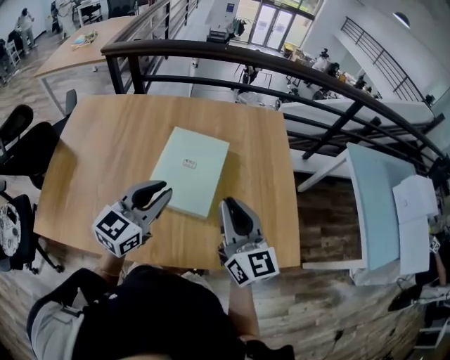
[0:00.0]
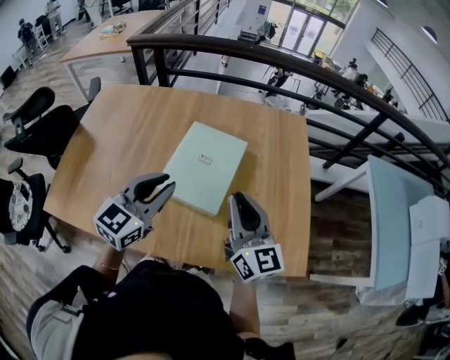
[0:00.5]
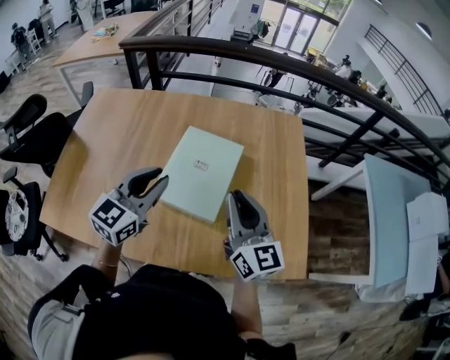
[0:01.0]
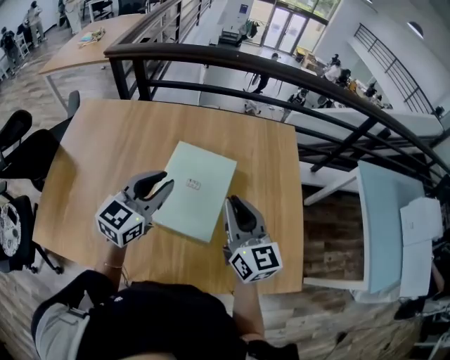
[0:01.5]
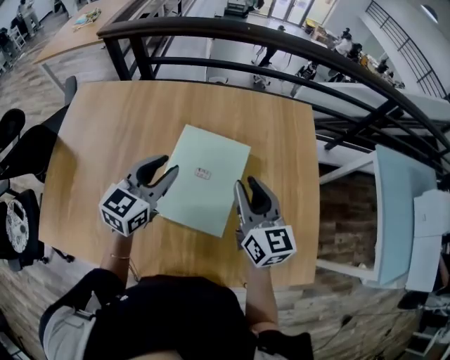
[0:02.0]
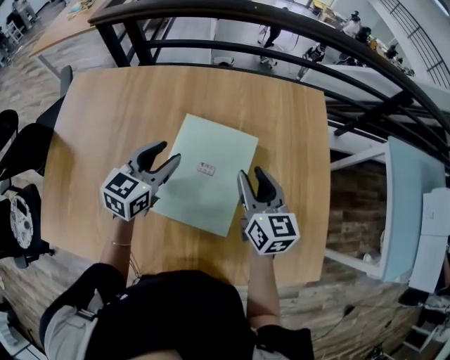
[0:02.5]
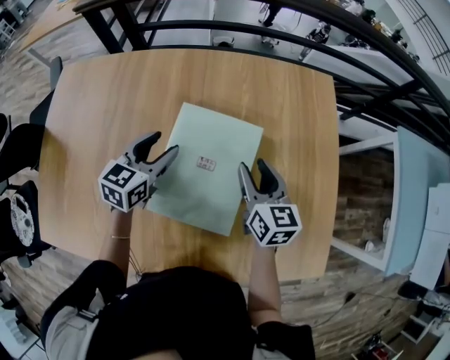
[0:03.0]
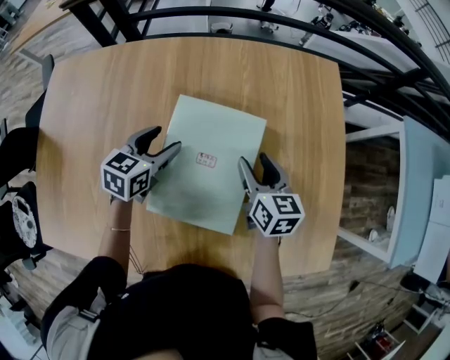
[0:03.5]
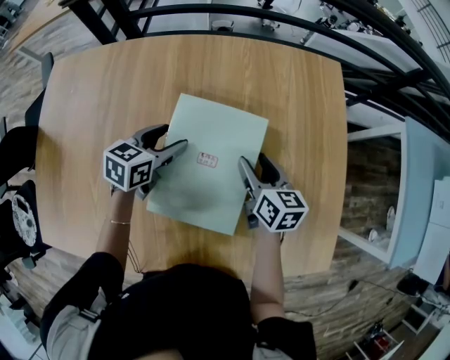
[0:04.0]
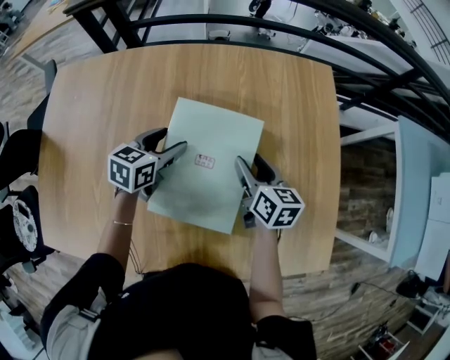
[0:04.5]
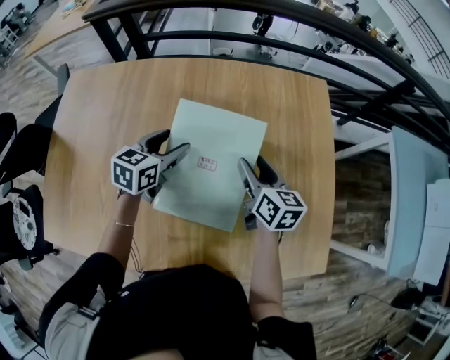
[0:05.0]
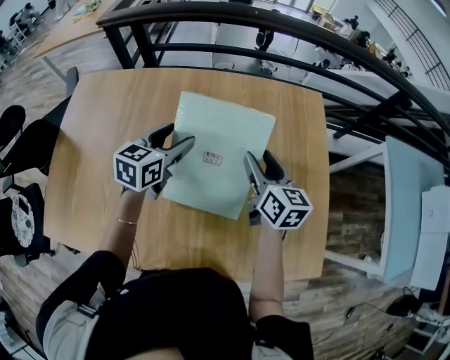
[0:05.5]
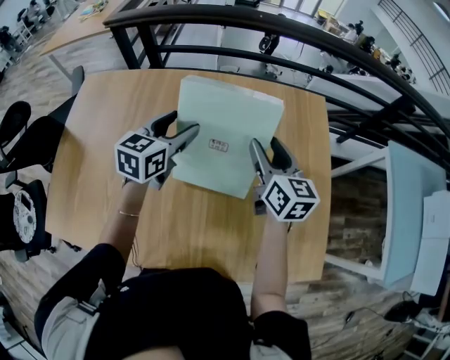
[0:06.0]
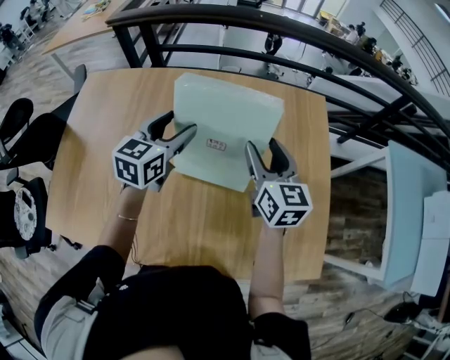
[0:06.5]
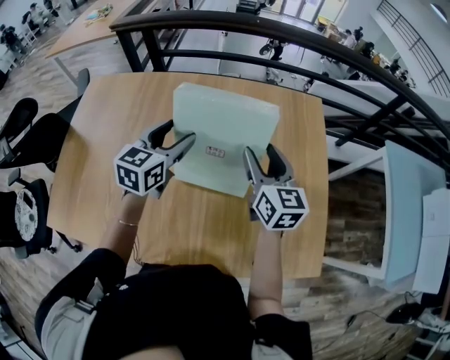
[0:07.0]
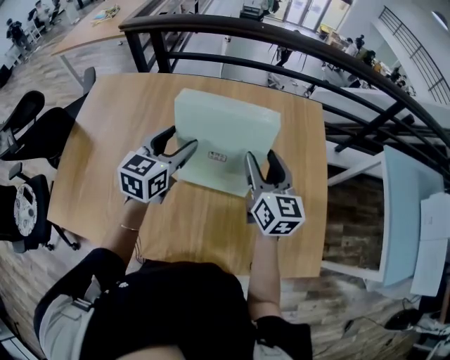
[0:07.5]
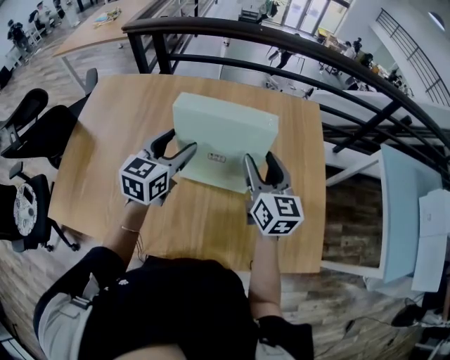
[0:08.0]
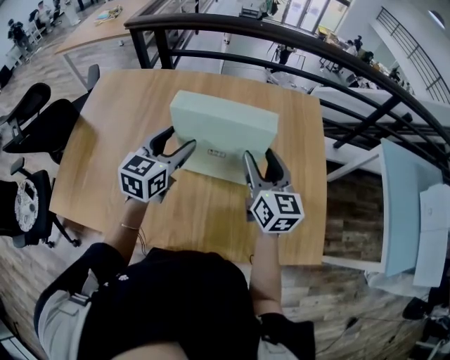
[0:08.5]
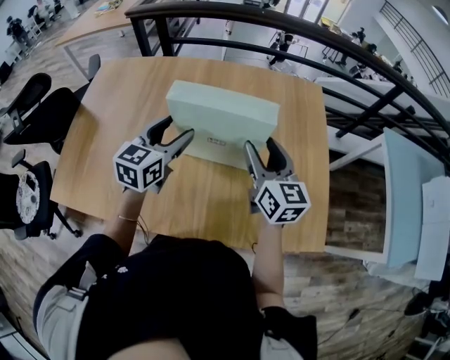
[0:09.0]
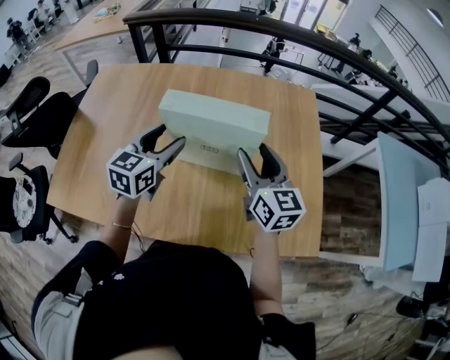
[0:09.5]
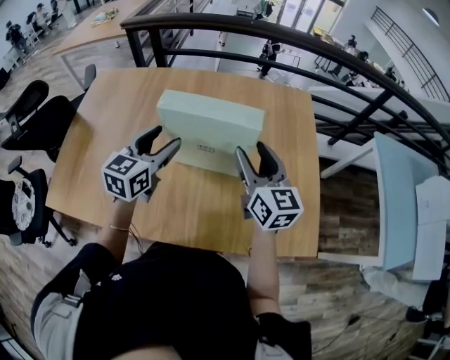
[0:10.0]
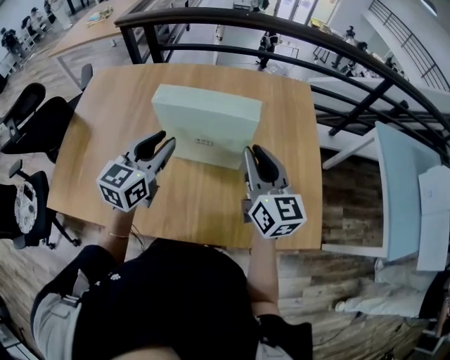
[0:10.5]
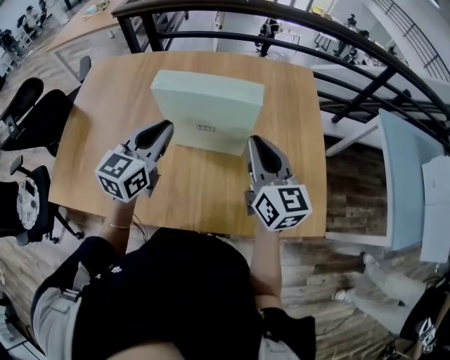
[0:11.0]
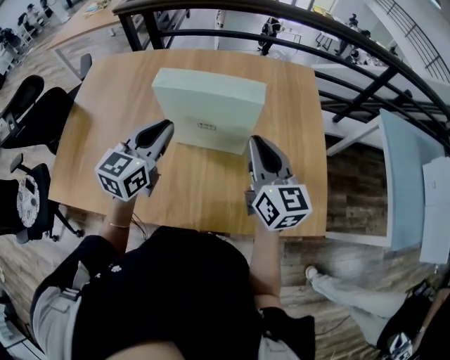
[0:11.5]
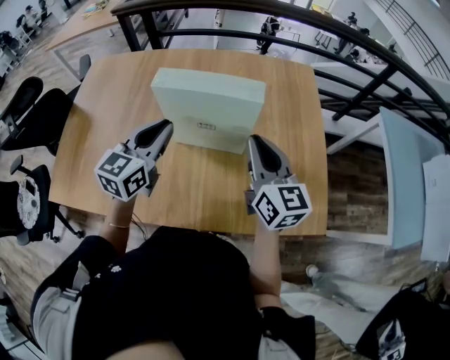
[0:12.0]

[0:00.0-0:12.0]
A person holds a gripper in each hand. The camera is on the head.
0:00.0 to 0:02.0: The left gripper is displaced forward by about 15 cm; the right gripper moves forward and downward, approximately 15 cm.
0:02.0 to 0:04.0: Both grippers move downward and forward, roughly 20 cm. The left gripper rotates approximately 30 degrees, and opens, while the right gripper turns by roughly 30 degrees, and opens its fingers.
0:04.0 to 0:06.0: The grippers both shift upward by some 15 cm. The left gripper changes its angle by approximately 20 degrees.
0:06.0 to 0:08.0: The grippers both shift backward by some 10 cm.
0:08.0 to 0:10.0: Both grippers move backward, some 5 cm.
0:10.0 to 0:12.0: The right gripper closes up, while the left gripper closes up.

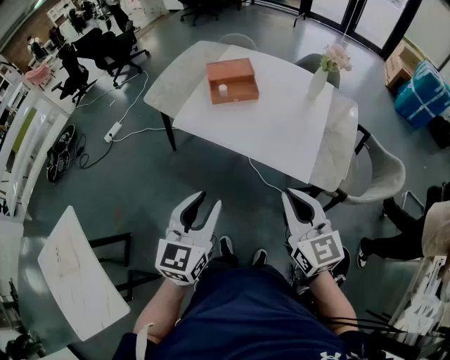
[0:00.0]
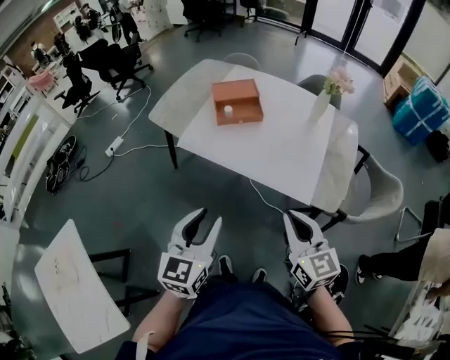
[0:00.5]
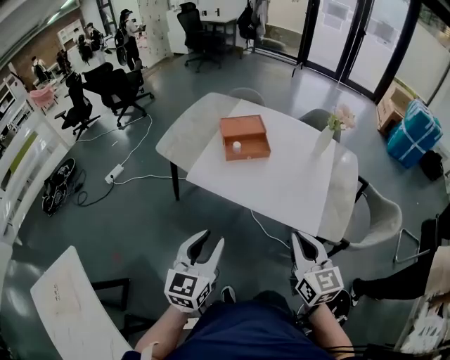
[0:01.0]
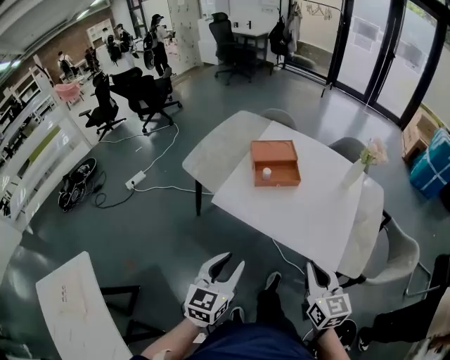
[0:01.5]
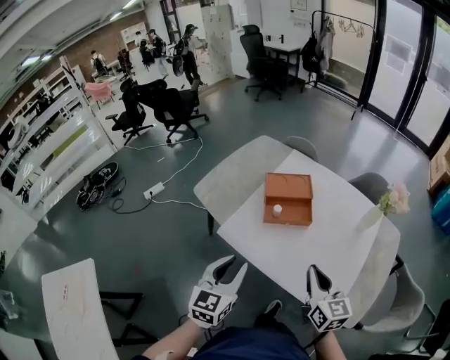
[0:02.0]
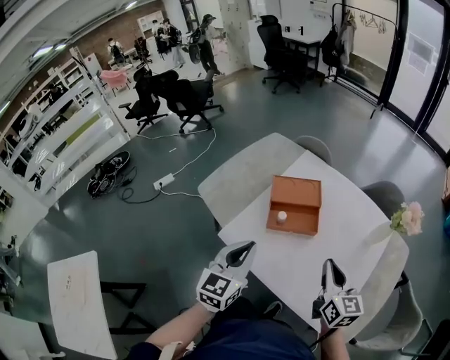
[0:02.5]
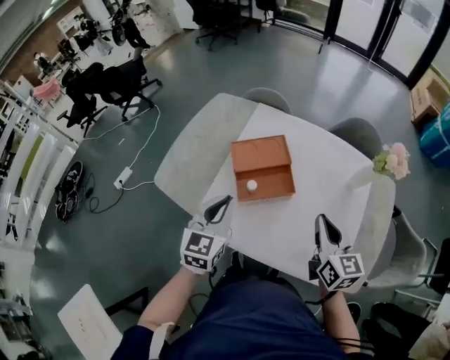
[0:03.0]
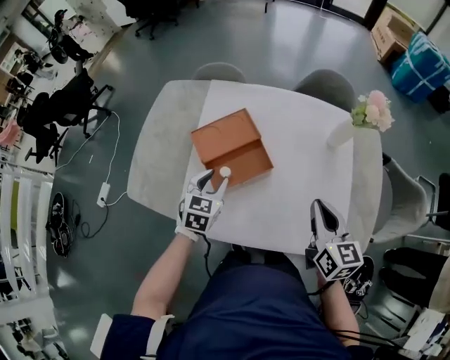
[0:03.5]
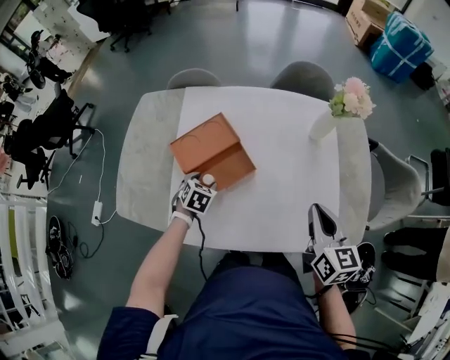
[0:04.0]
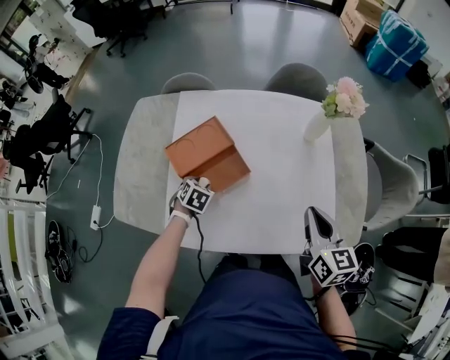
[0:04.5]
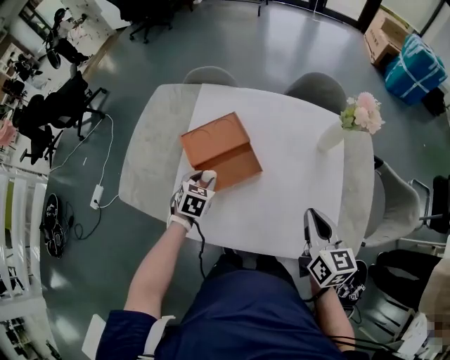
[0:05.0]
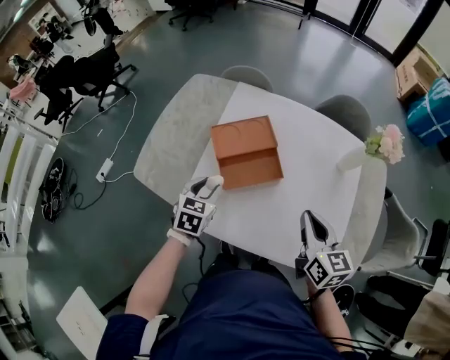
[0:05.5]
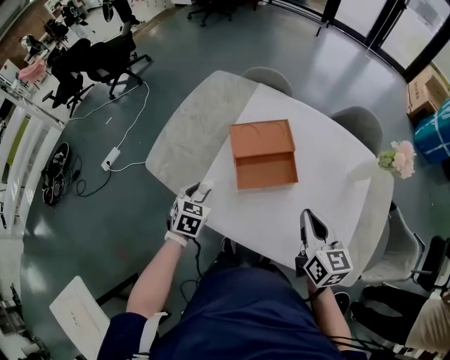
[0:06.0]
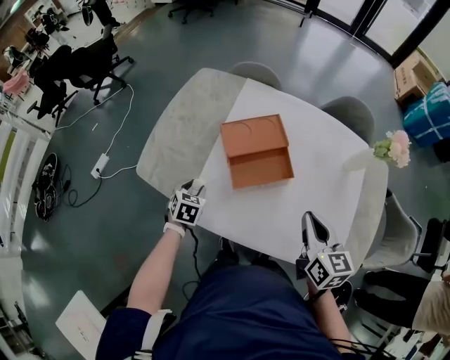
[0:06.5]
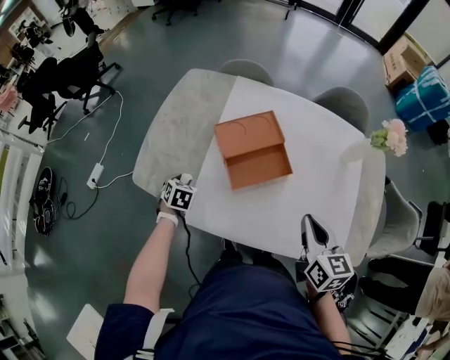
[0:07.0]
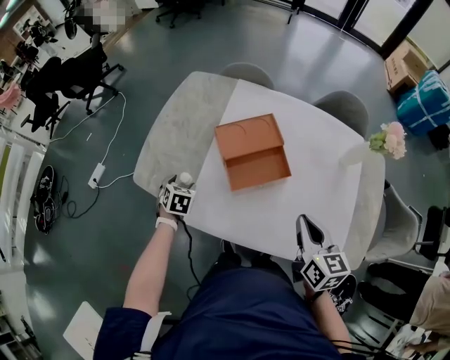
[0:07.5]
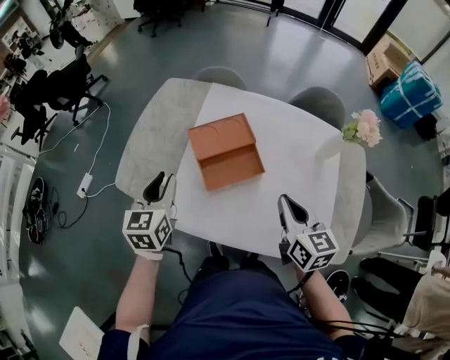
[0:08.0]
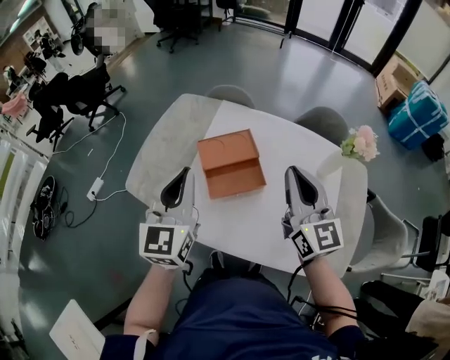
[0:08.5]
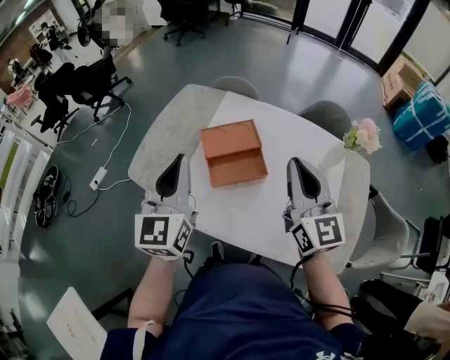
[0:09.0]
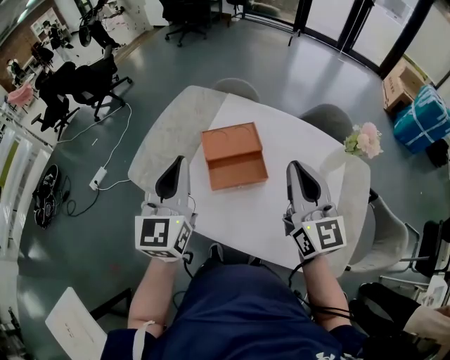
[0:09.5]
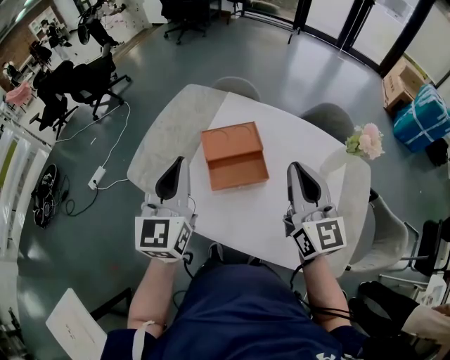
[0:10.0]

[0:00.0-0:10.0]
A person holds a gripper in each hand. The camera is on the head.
0:00.0 to 0:02.0: The two grippers go some 25 cm forward.
0:02.0 to 0:04.0: The right gripper changes place by roughly 15 cm, and turns by approximately 40 degrees, while the left gripper changes place by approximately 40 cm, tilts its fingers roughly 50 degrees downward, and opens.
0:04.0 to 0:06.0: The left gripper shifts approximately 20 cm to the left, backward and upward, and rotates some 30 degrees, while the right gripper shifts about 15 cm to the left, and turns by about 20 degrees.
0:06.0 to 0:08.0: The left gripper is displaced upward by roughly 15 cm, changes its angle by about 30 degrees, and opens and closes again.
0:08.0 to 0:10.0: The grippers both shift upward by approximately 15 cm. The left gripper changes its angle by roughly 20 degrees, and closes up; the right gripper turns by roughly 30 degrees.

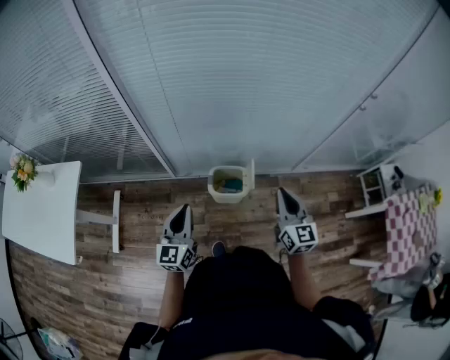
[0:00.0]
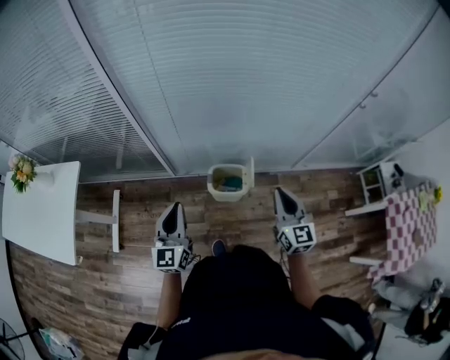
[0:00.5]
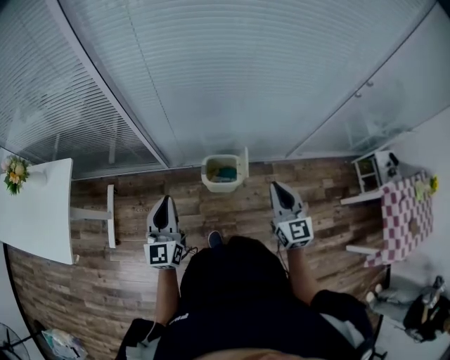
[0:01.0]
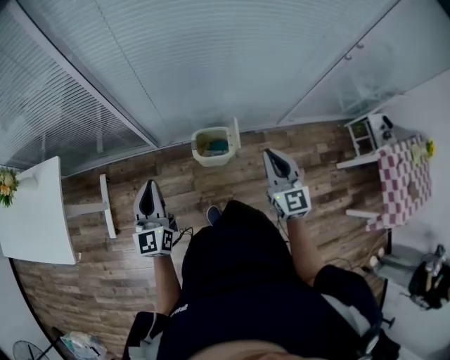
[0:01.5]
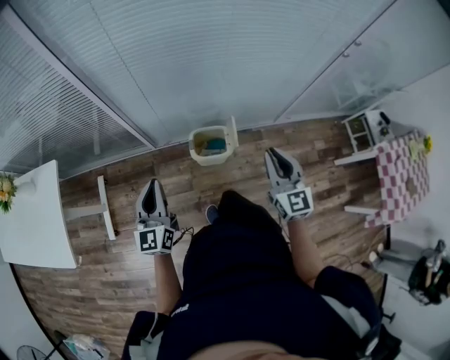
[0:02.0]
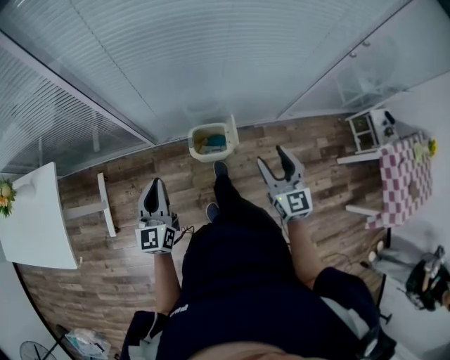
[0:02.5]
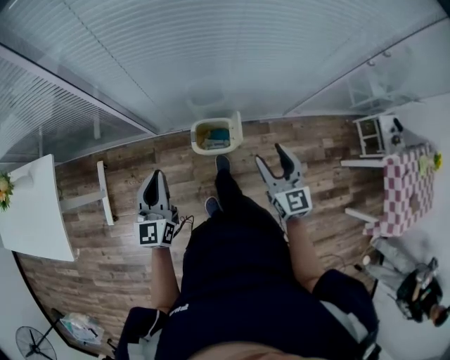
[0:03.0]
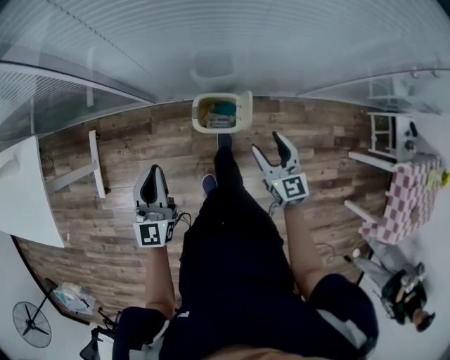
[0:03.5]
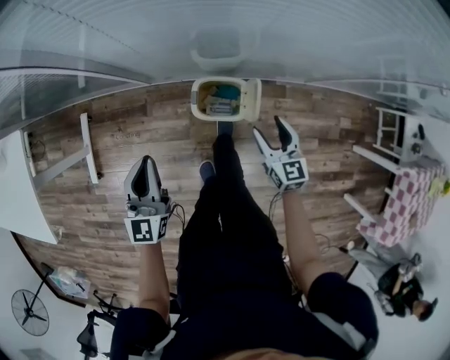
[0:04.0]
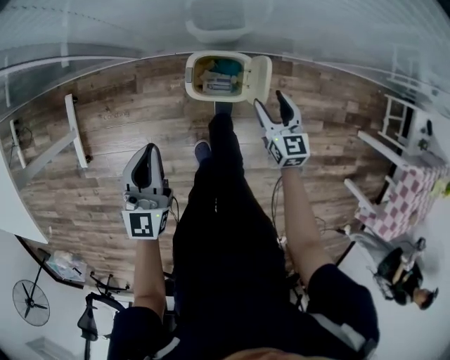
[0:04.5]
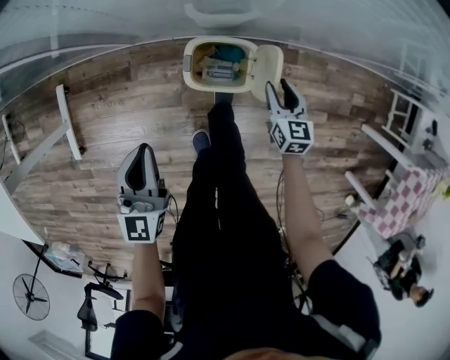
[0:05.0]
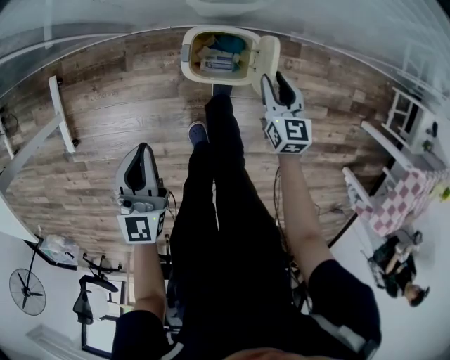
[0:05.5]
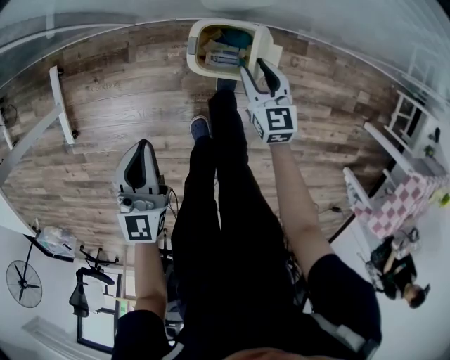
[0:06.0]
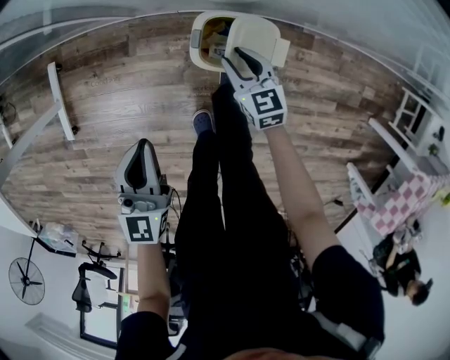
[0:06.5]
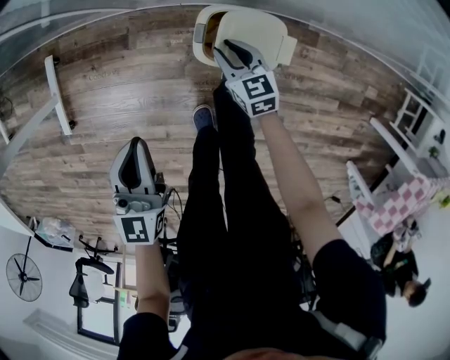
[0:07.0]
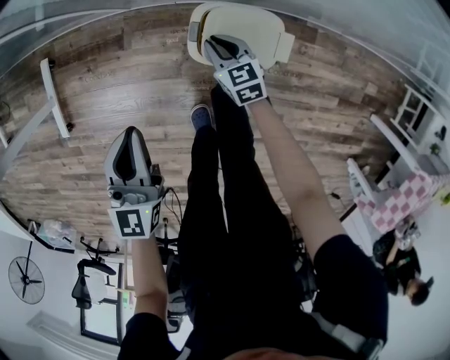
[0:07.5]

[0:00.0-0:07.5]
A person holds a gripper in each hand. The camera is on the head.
0:02.0 to 0:04.0: The right gripper goes about 30 cm downward and forward, turns by roughly 20 degrees, and opens, while the left gripper is displaced downward and forward by about 15 cm.
0:04.0 to 0:05.5: The two grippers go approximately 15 cm downward. The right gripper closes.
0:05.5 to 0:07.5: The left gripper shifts by about 5 cm, while the right gripper shifts approximately 20 cm to the left and downward, and swivels roughly 30 degrees.
